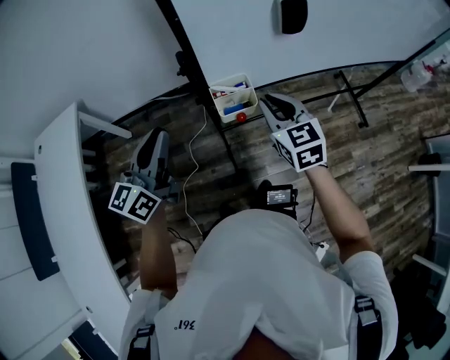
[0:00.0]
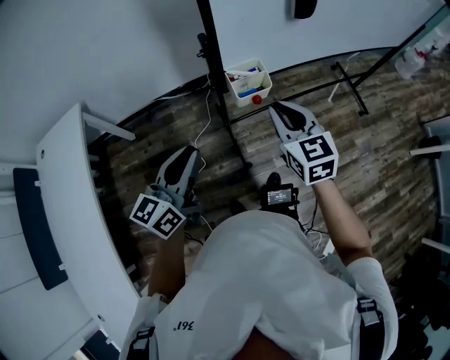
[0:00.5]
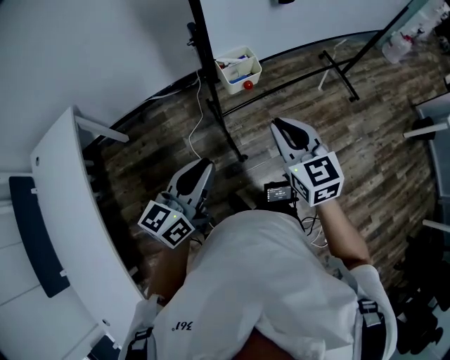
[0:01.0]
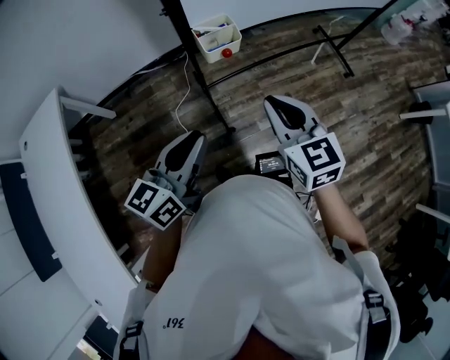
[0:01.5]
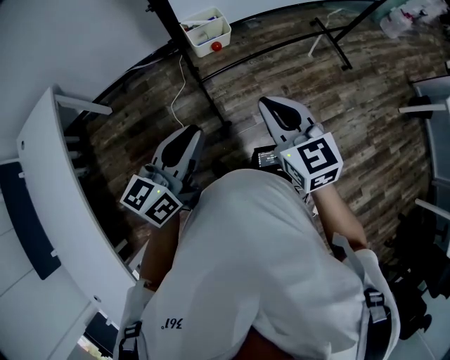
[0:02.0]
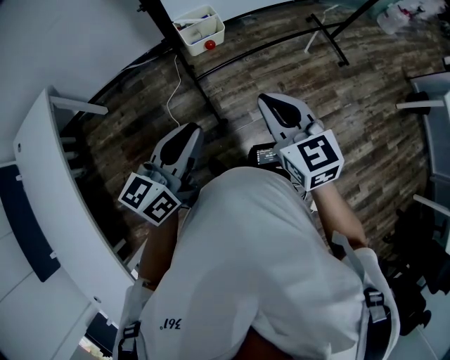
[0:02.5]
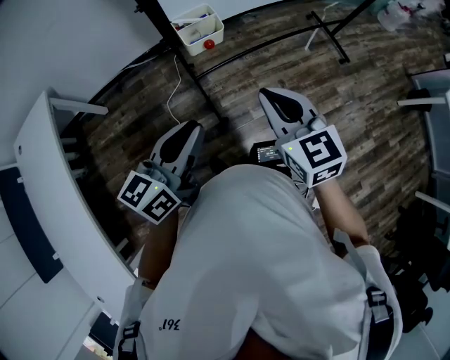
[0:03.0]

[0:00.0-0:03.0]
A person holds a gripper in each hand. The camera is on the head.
0:00.0 to 0:01.5: The right gripper shifts roughly 20 cm backward. The left gripper shifts some 20 cm backward and to the right, and rotates some 20 degrees.
0:01.5 to 0:03.0: The grippers stay close to where they were, moving slightly.

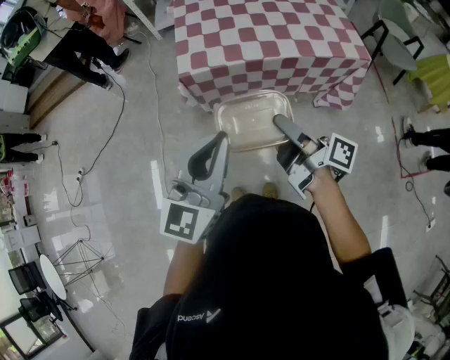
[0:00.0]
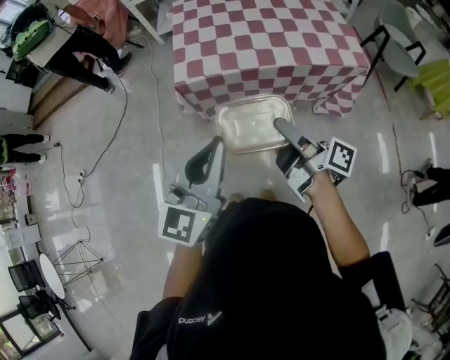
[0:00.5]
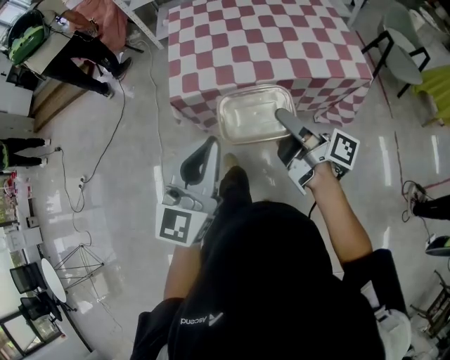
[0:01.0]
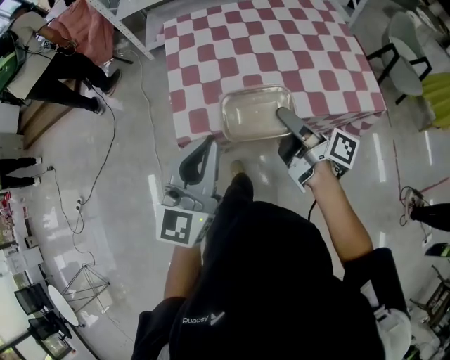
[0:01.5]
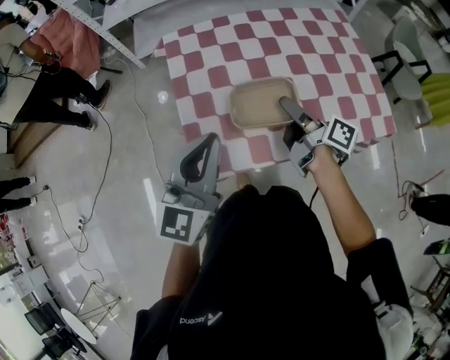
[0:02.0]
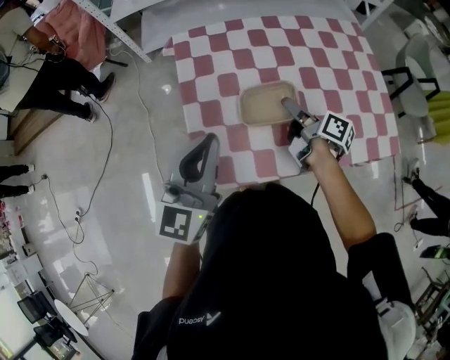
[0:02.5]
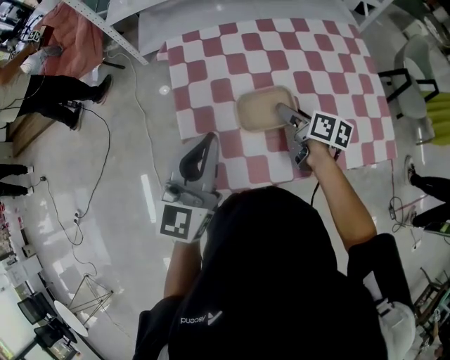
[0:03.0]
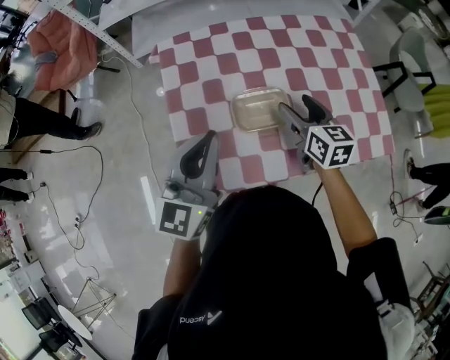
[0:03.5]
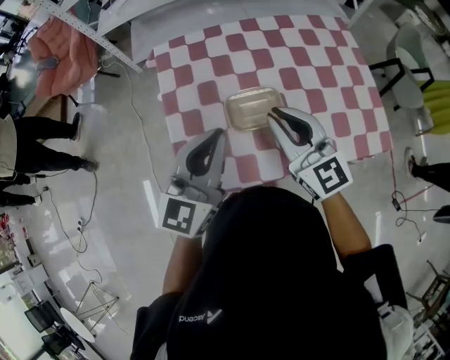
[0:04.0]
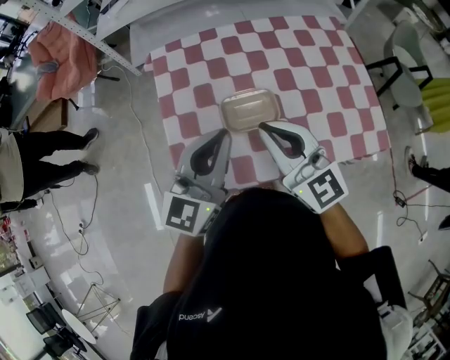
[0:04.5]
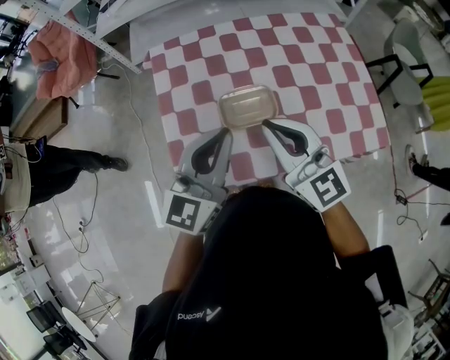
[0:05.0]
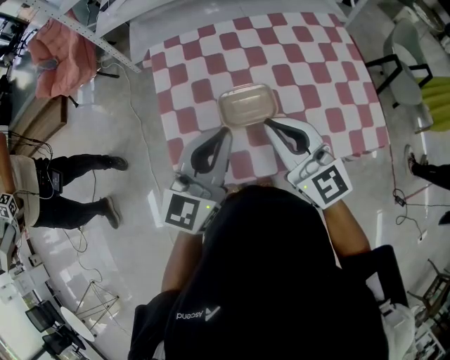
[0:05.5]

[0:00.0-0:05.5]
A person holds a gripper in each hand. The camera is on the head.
0:00.0 to 0:02.0: Both grippers are carried forward, about 50 cm.
0:02.0 to 0:03.5: Both grippers move forward, approximately 10 cm. The right gripper rotates around the line of its fingers by roughly 60 degrees, counterclockwise from behind, and opens up.
0:03.5 to 0:05.5: The left gripper goes roughly 5 cm to the right, while the right gripper heads upward, backward and to the left, covering some 15 cm, rotates approximately 40 degrees, and closes up.

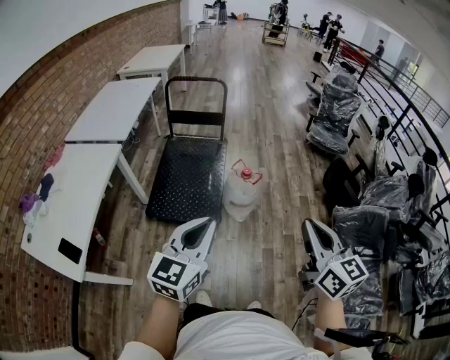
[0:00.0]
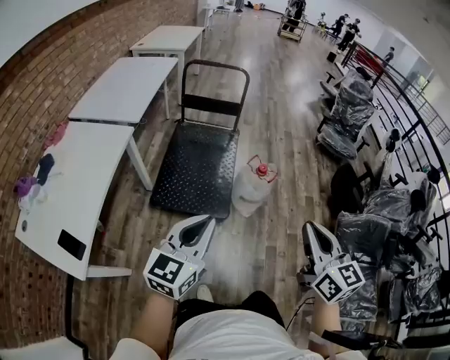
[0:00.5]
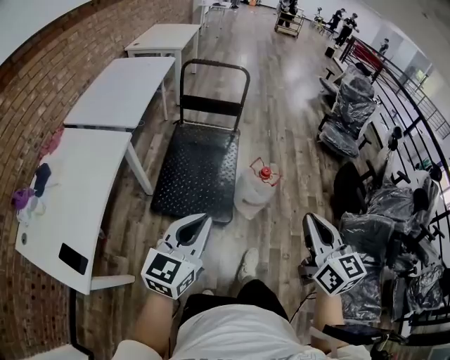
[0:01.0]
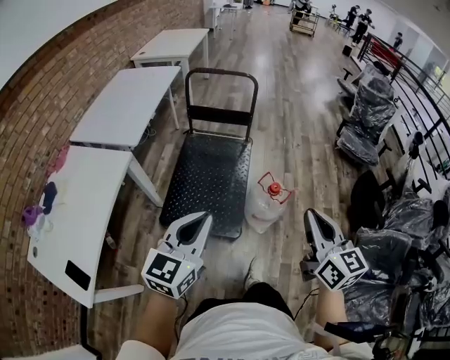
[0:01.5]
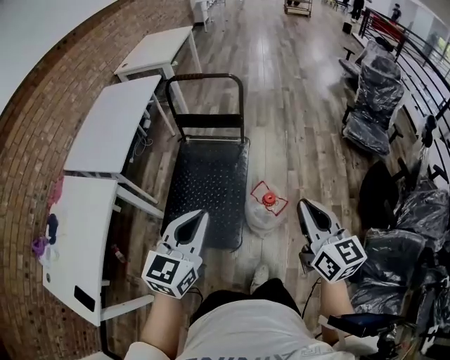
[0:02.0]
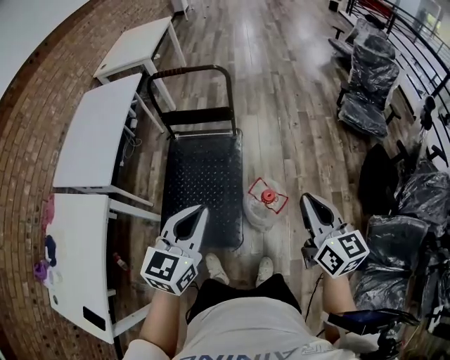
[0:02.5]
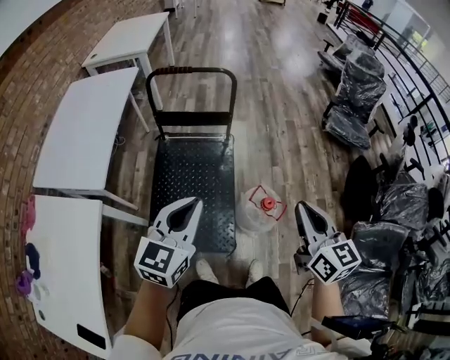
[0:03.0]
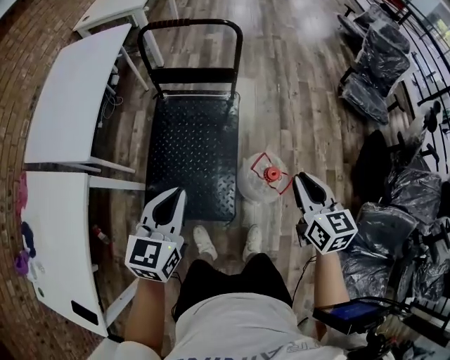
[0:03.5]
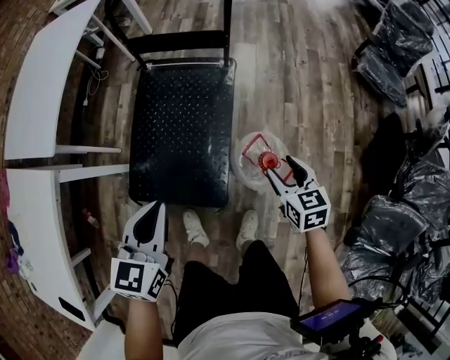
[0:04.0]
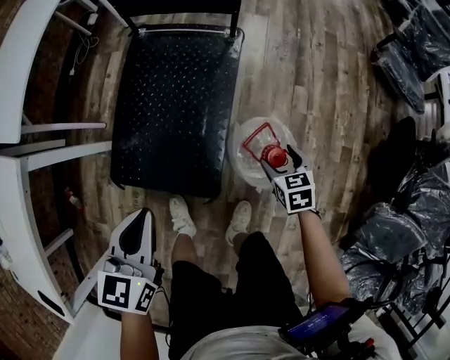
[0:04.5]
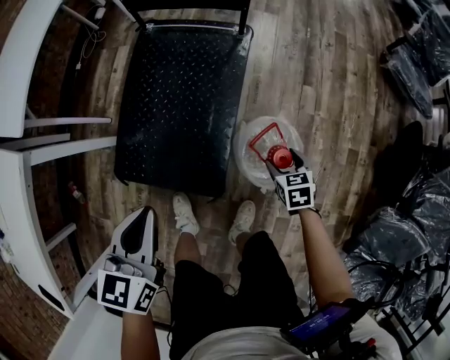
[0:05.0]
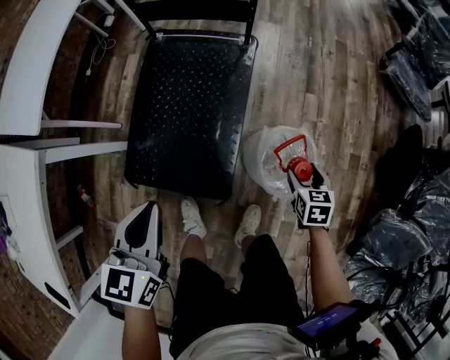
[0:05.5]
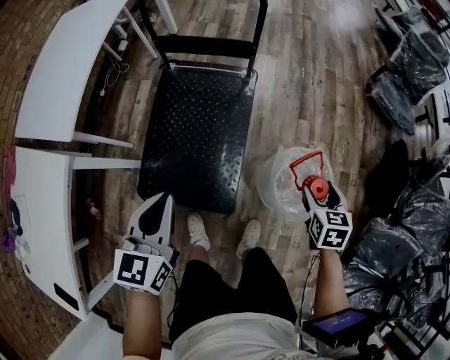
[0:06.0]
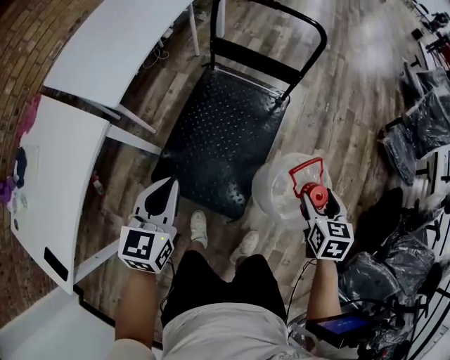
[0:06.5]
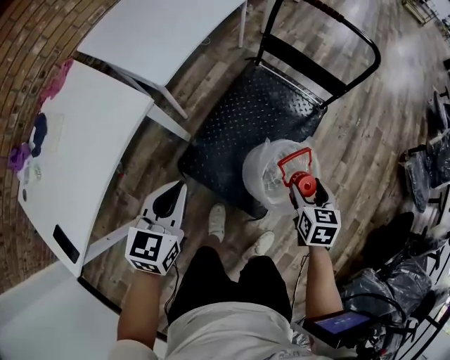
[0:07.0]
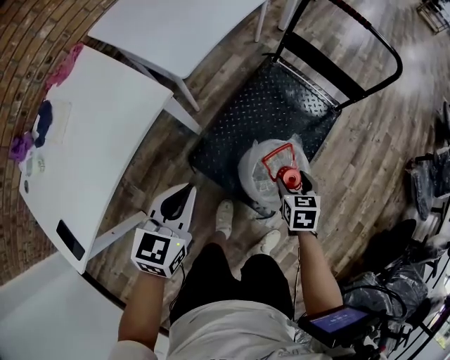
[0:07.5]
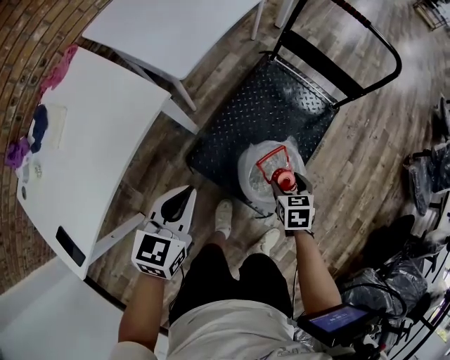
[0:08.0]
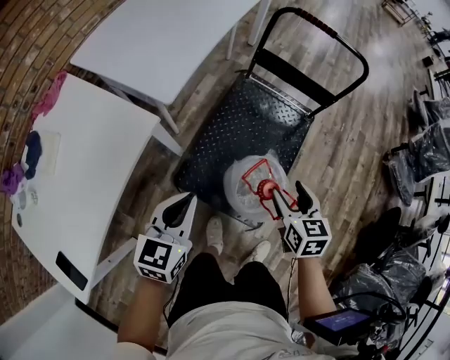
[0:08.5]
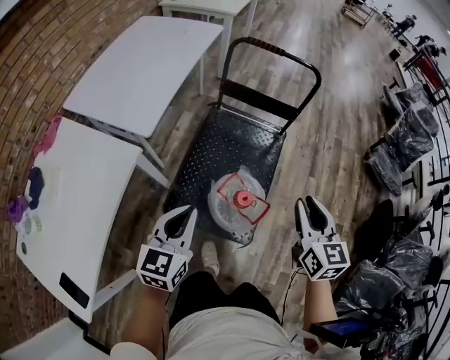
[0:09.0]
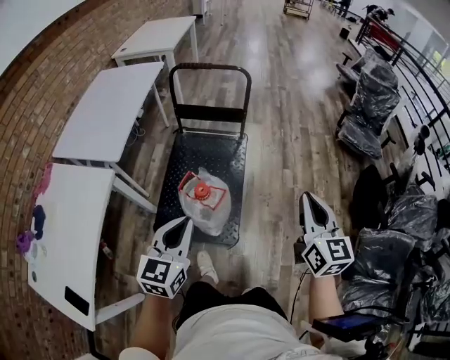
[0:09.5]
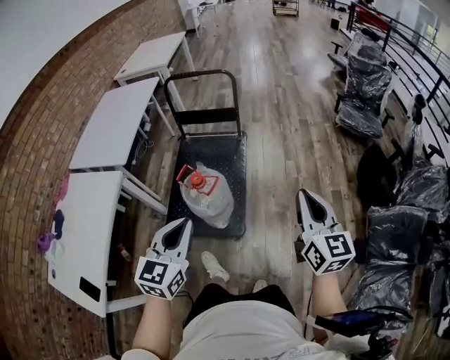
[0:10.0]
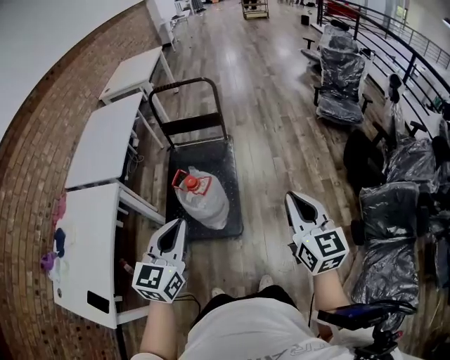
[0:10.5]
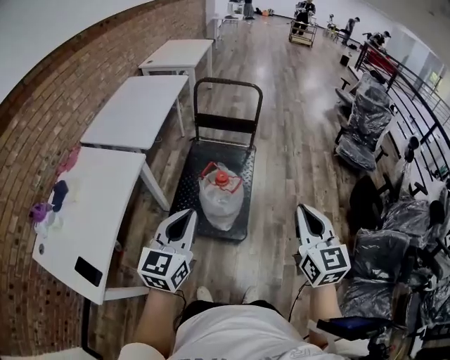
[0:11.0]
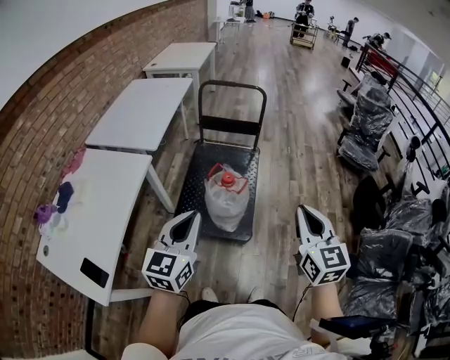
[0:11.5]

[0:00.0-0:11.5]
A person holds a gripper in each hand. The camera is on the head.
0:00.0 to 0:02.0: Both grippers travel together forward, approximately 35 cm.
0:02.0 to 0:04.0: The left gripper is displaced downward and forward by roughly 25 cm. Meanwhile the right gripper travels downward and forward by some 40 cm, tilts its fingers roughly 30 degrees downward, and opens.
0:04.0 to 0:06.0: The left gripper reaches roughly 10 cm downward, then returns; the right gripper travels to the right by some 5 cm, and goes downward and returns, approximately 20 cm each way.
0:06.0 to 0:07.5: The left gripper shifts roughly 25 cm to the left. The right gripper shifts some 40 cm to the left, and rotates roughly 30 degrees.
0:07.5 to 0:09.5: The right gripper moves upward, to the right and backward, approximately 50 cm, points its fingers roughly 50 degrees further upward, and closes its fingers. Meanwhile the left gripper travels to the right, upward and backward by some 25 cm, and swivels some 30 degrees.
0:09.5 to 0:11.5: The right gripper is displaced backward and to the left by about 20 cm, while the left gripper heads backward, upward and to the left, covering roughly 20 cm.

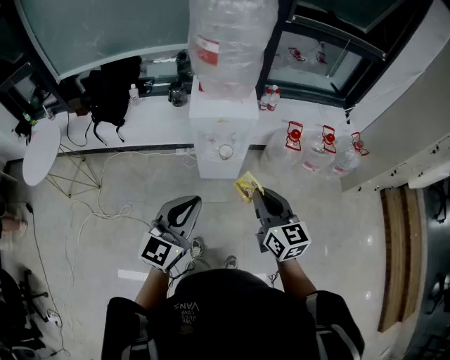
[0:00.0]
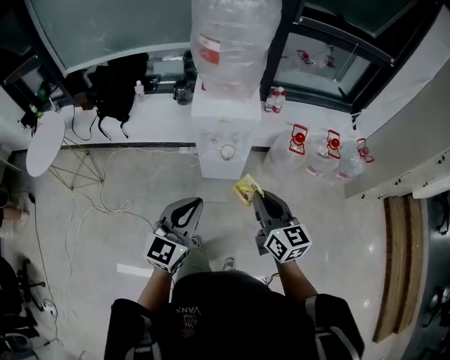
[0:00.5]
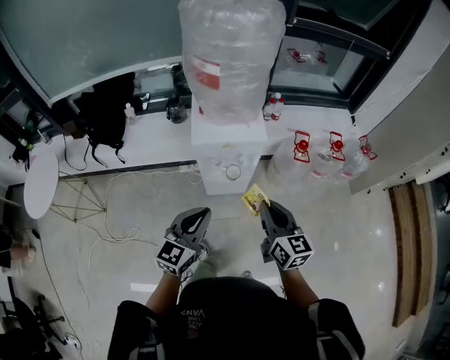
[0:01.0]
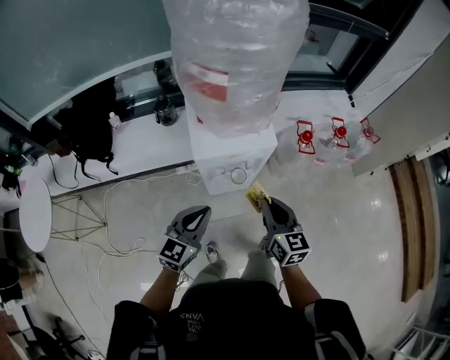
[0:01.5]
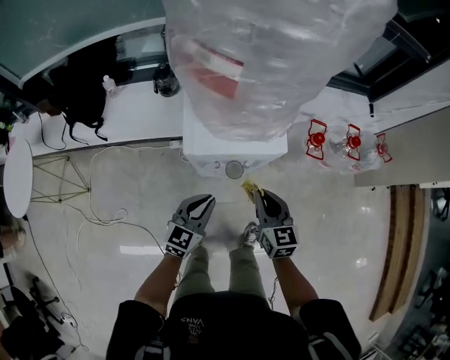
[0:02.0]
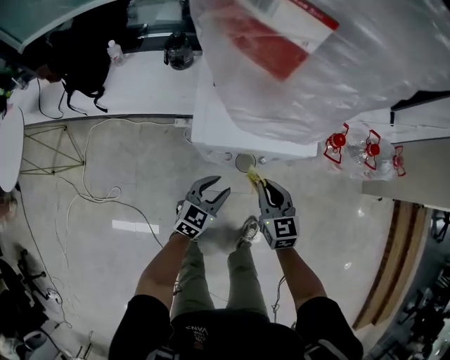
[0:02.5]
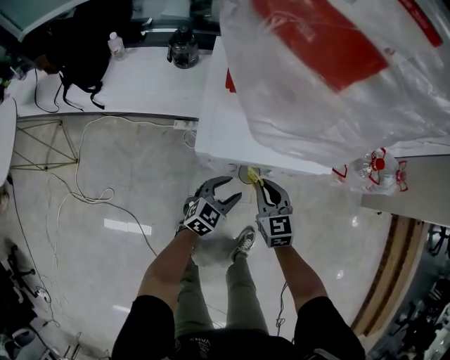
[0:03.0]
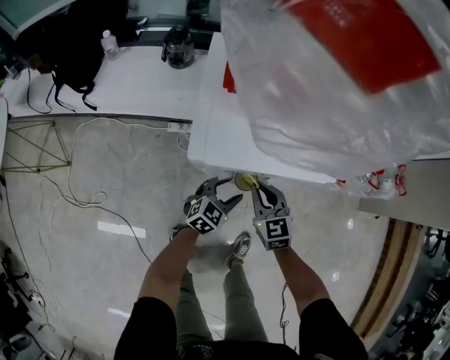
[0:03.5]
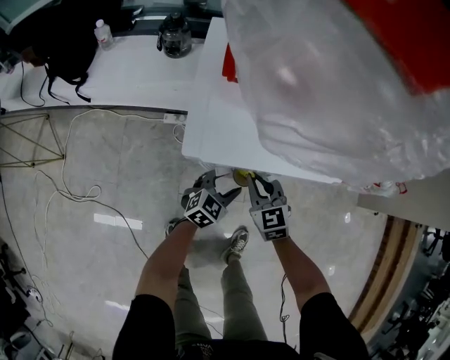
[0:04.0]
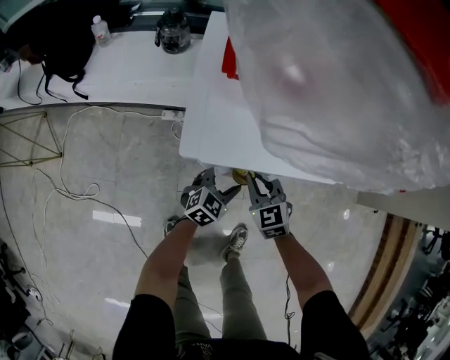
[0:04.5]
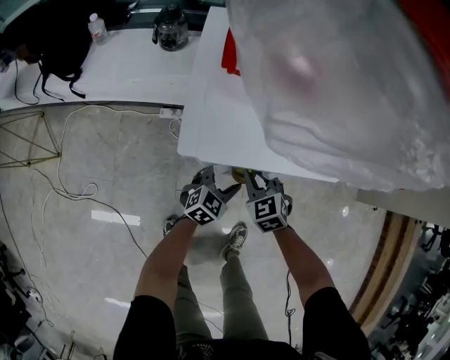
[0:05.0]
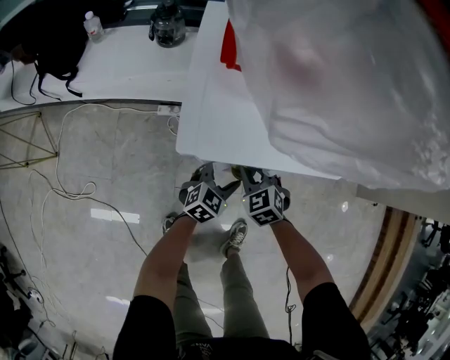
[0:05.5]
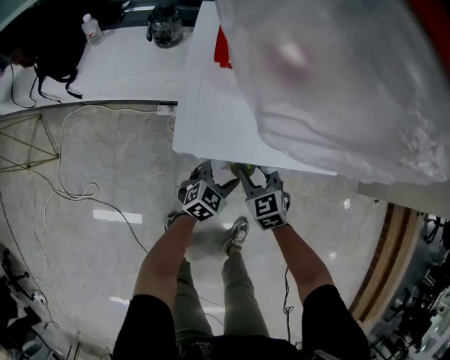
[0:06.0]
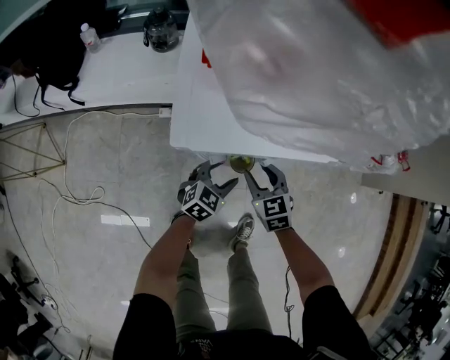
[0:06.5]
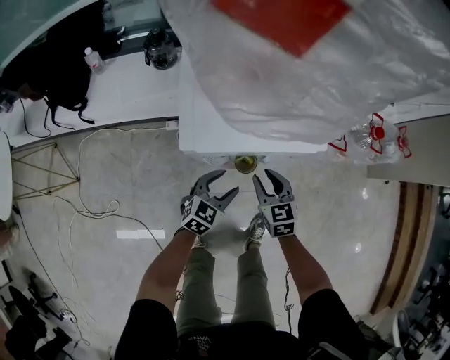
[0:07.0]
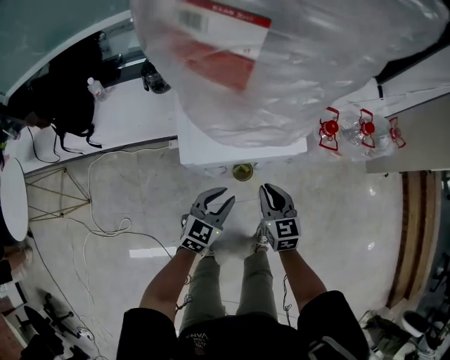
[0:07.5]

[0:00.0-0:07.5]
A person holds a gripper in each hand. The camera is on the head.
0:00.0 to 0:02.0: The two grippers go roughly 40 cm forward and downward. The left gripper rotates approximately 20 degrees.
0:02.0 to 0:04.0: The grippers both shift downward by roughly 25 cm. The left gripper opens up; the right gripper changes its angle by about 30 degrees.
0:04.0 to 0:05.5: The right gripper goes about 5 cm downward.
0:05.5 to 0:07.5: The left gripper shifts some 20 cm upward, and closes its fingers. The right gripper moves upward and to the right, about 20 cm, swivels some 40 degrees, and opens, then closes again.
